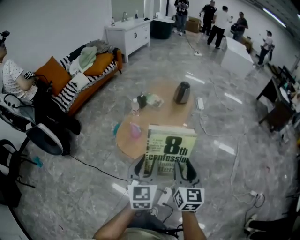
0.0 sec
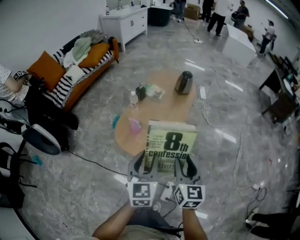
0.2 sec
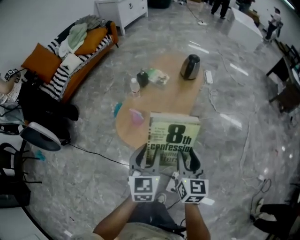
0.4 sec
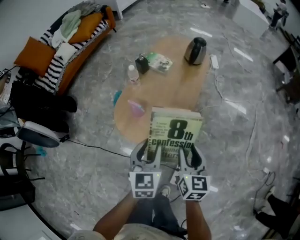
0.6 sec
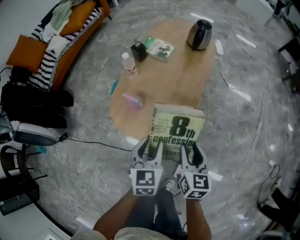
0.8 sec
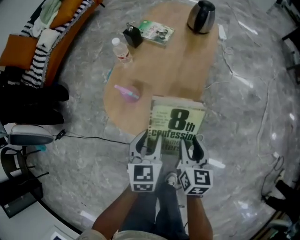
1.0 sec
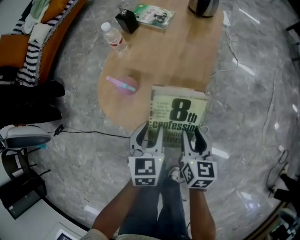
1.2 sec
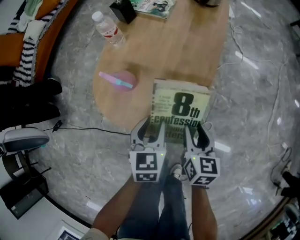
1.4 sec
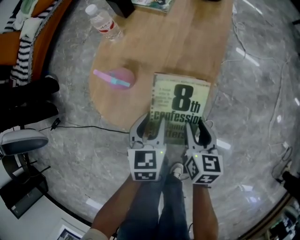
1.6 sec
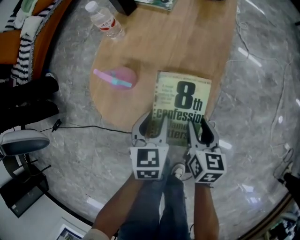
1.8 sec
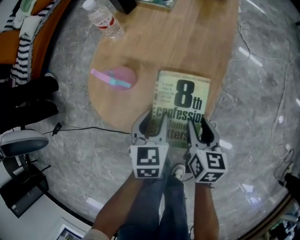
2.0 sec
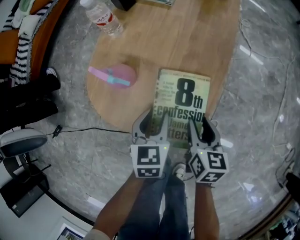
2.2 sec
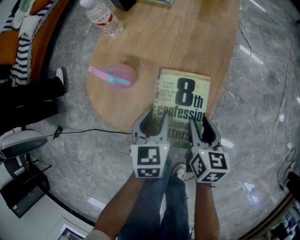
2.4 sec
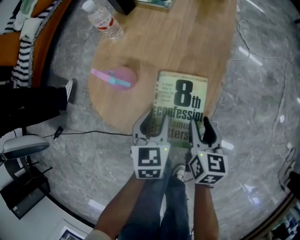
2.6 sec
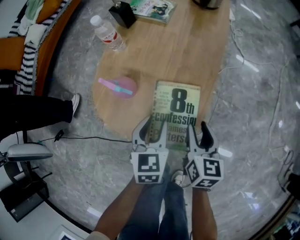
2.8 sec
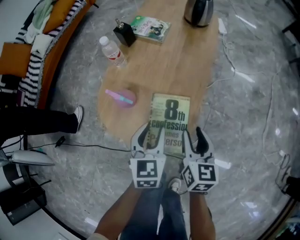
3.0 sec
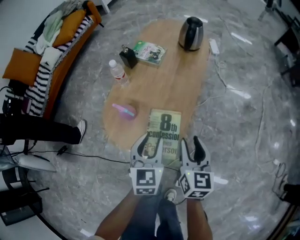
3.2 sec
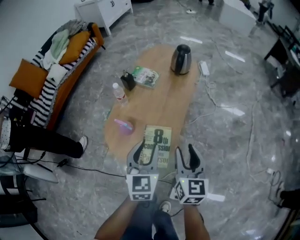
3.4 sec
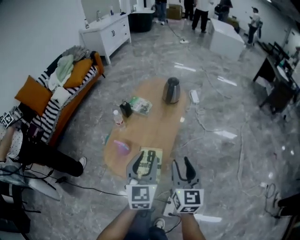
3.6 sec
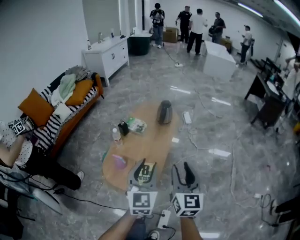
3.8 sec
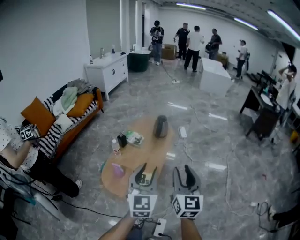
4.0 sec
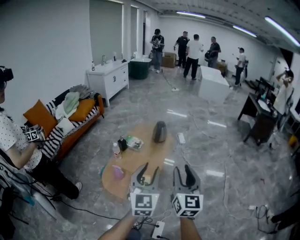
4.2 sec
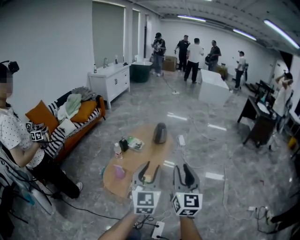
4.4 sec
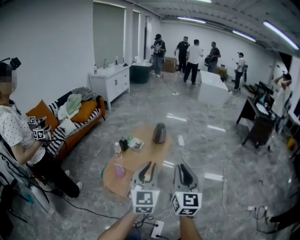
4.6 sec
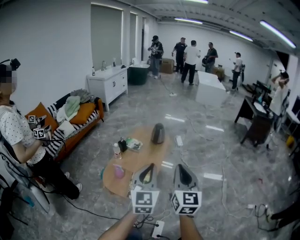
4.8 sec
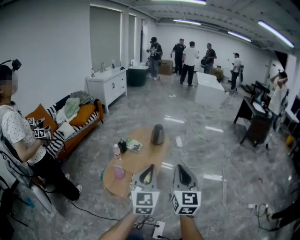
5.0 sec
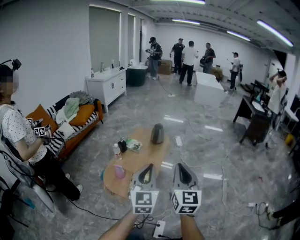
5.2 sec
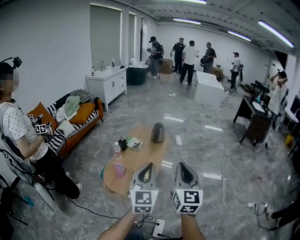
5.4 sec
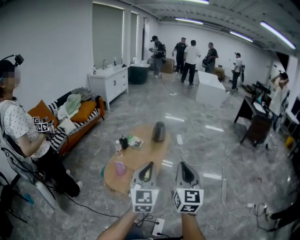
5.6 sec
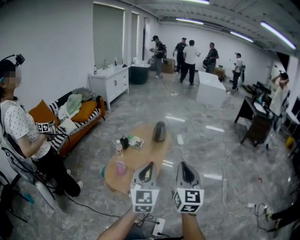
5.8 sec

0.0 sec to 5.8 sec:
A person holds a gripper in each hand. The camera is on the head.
0.0 sec to 1.4 sec: The grippers both shift downward and forward by approximately 50 cm. The right gripper turns by about 30 degrees, while the left gripper tilts its fingers roughly 30 degrees downward.
1.4 sec to 2.8 sec: The grippers make only small movements.
2.8 sec to 4.4 sec: Both grippers travel together upward, approximately 60 cm. The right gripper angles its fingers upward, by some 40 degrees, while the left gripper tilts its fingers some 40 degrees upward.
4.4 sec to 5.8 sec: The left gripper is displaced backward by some 5 cm, and closes up; the right gripper moves approximately 5 cm, and closes up.

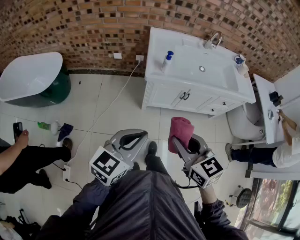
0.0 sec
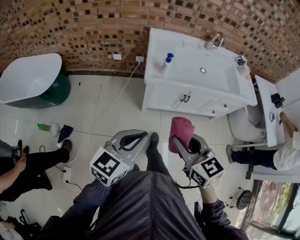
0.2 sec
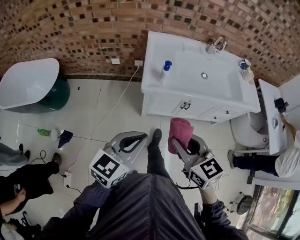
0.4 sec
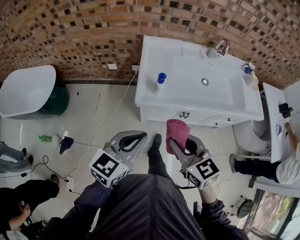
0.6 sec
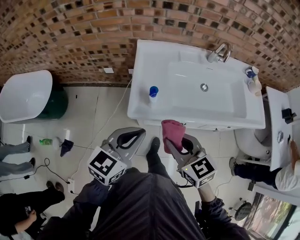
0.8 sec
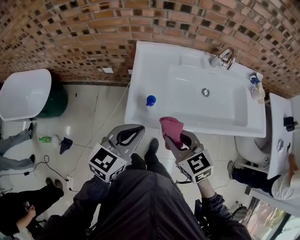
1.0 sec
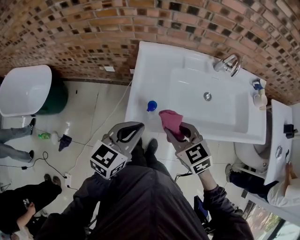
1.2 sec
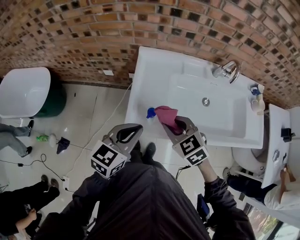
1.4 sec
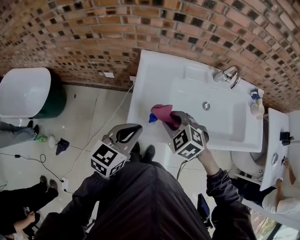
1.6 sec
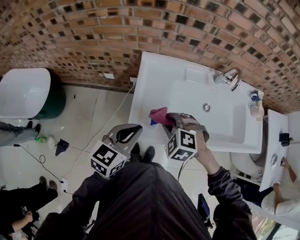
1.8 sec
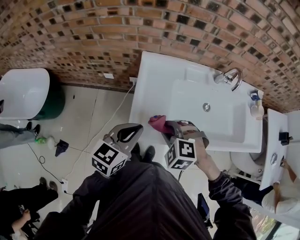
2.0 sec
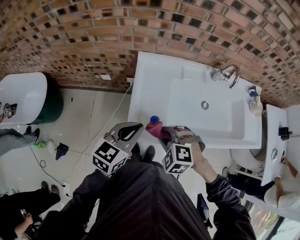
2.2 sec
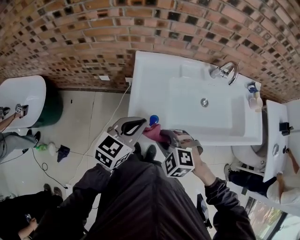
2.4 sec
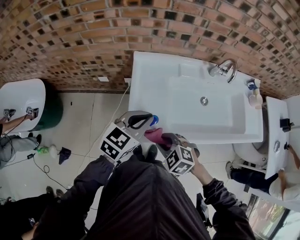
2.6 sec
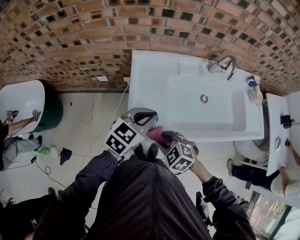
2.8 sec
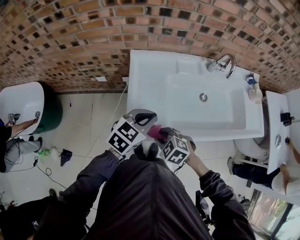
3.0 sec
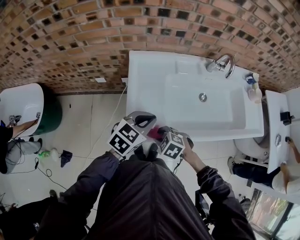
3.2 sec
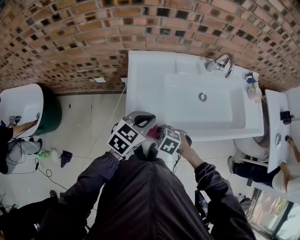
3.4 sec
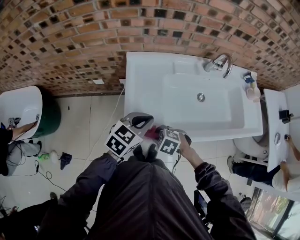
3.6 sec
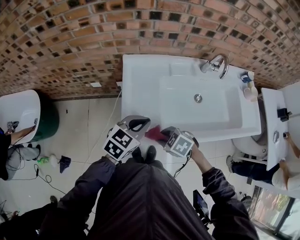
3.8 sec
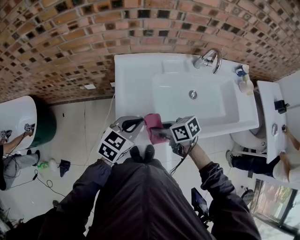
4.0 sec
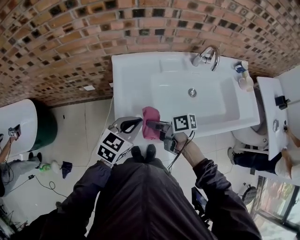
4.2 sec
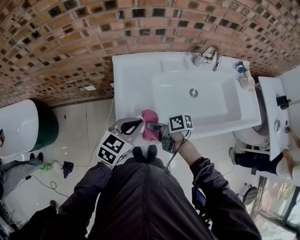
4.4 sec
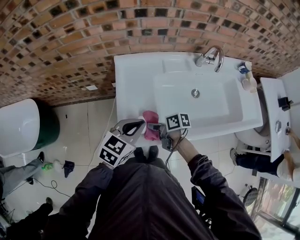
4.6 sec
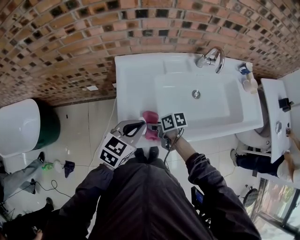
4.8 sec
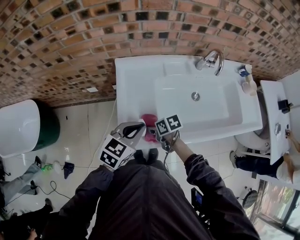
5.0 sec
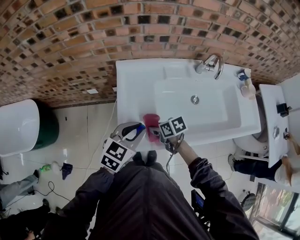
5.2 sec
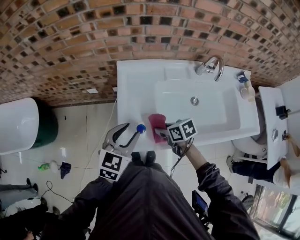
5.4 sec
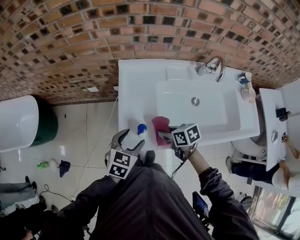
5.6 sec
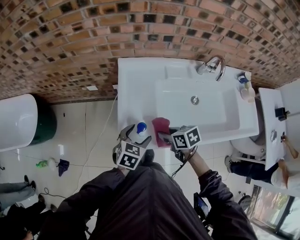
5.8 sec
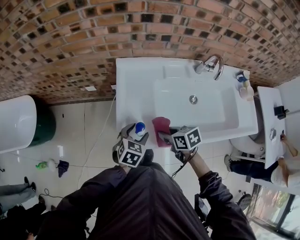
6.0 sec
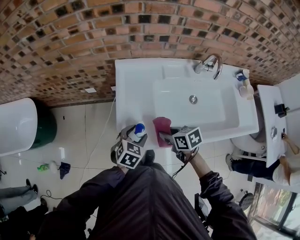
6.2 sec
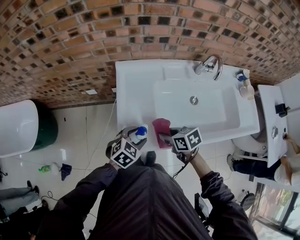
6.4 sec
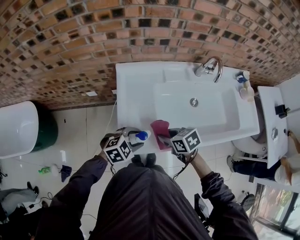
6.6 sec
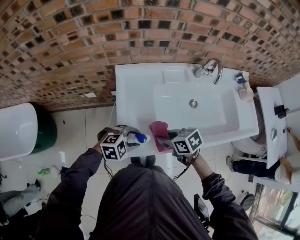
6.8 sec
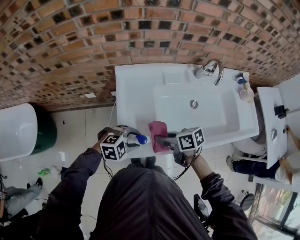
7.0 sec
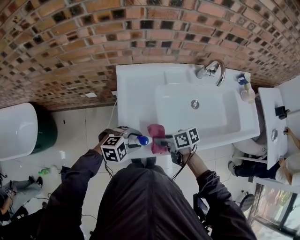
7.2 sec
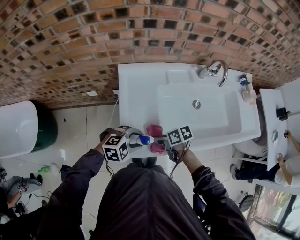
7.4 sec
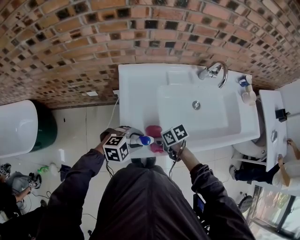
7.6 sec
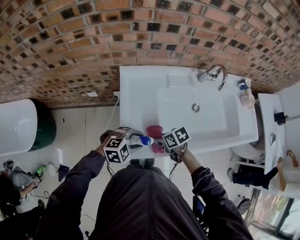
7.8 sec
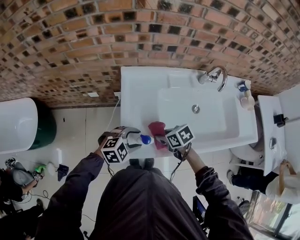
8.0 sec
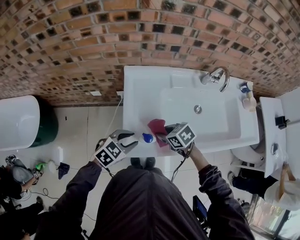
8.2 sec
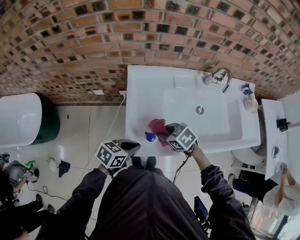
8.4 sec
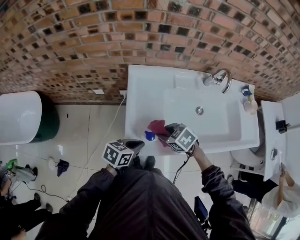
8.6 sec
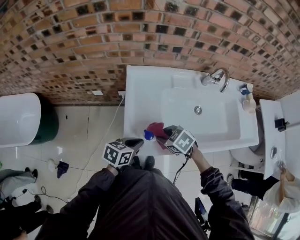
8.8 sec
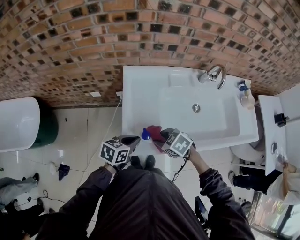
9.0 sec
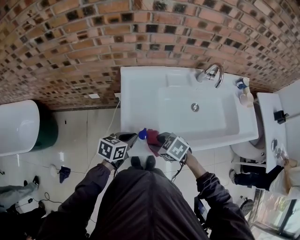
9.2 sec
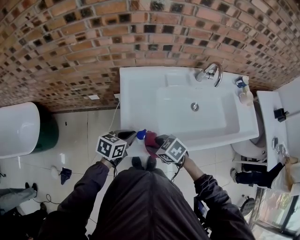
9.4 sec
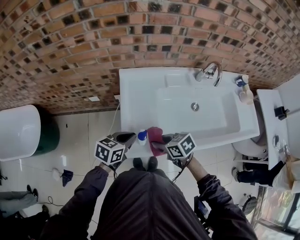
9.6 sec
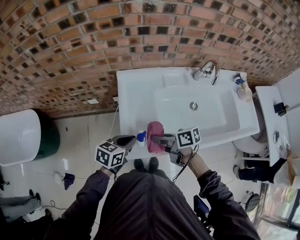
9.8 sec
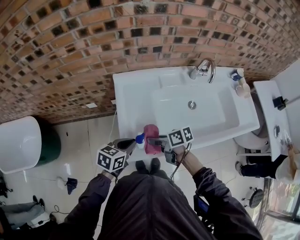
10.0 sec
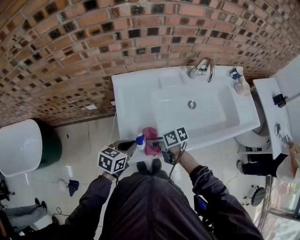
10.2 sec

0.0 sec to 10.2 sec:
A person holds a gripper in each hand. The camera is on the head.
0.0 sec to 1.4 sec: The pair of grippers is taken forward, some 40 cm. The right gripper rotates about 30 degrees.
1.4 sec to 3.0 sec: The right gripper is displaced downward by about 10 cm, and changes its angle by some 20 degrees; the left gripper travels forward by about 5 cm, and rotates approximately 20 degrees.
3.0 sec to 4.4 sec: The right gripper goes up and down, about 5 cm each way, reversing 2 times, and rolls clockwise, seen from behind, by some 80 degrees.
4.4 sec to 5.8 sec: The right gripper changes place by some 5 cm, and rotates roughly 40 degrees, while the left gripper travels downward by approximately 10 cm, rotates about 20 degrees, and opens its fingers.
5.8 sec to 7.2 sec: The right gripper swivels approximately 20 degrees, while the left gripper twists some 50 degrees clockwise, seen from behind, and closes.
7.2 sec to 8.8 sec: The right gripper moves some 5 cm downward and comes back, and rolls counterclockwise, seen from behind, by roughly 50 degrees, while the left gripper rolls counterclockwise, seen from behind, by about 70 degrees, and closes up.
8.8 sec to 10.2 sec: The right gripper twists approximately 50 degrees clockwise, seen from behind.

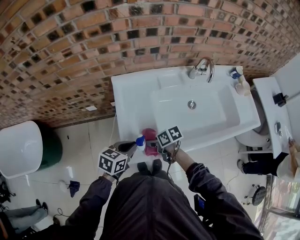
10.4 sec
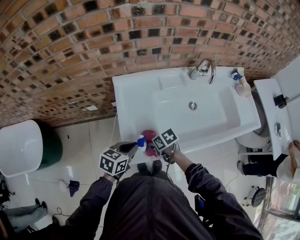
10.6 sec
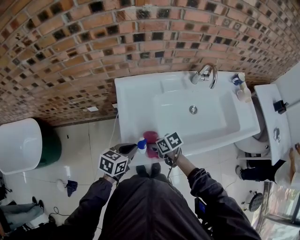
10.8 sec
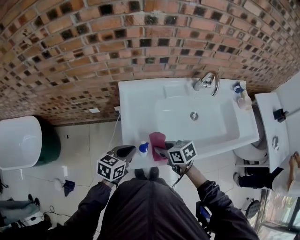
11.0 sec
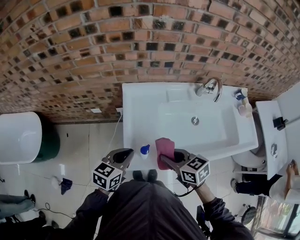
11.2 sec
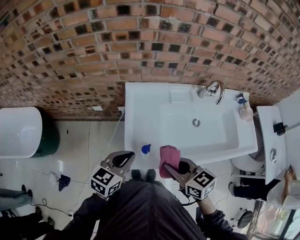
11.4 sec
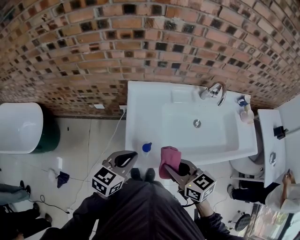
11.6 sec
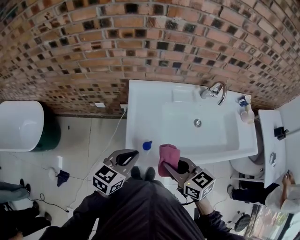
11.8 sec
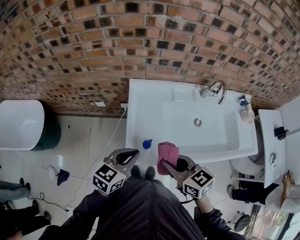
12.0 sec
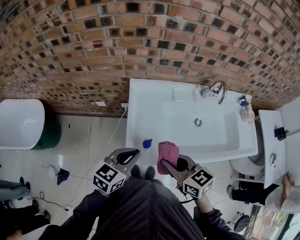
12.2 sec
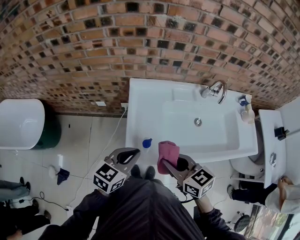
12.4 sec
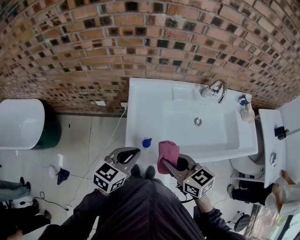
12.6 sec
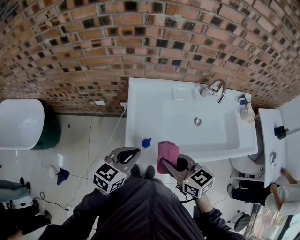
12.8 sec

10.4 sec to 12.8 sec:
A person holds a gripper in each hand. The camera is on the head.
10.4 sec to 11.6 sec: The left gripper is displaced upward by approximately 10 cm. The right gripper shifts approximately 20 cm upward, and changes its angle by some 40 degrees.
11.6 sec to 12.8 sec: The two grippers keep their place.

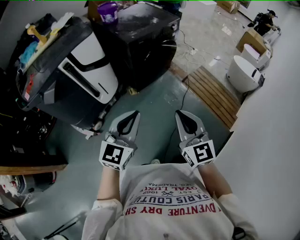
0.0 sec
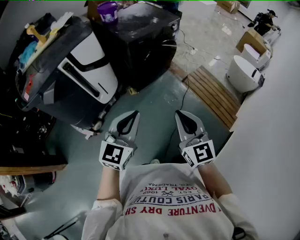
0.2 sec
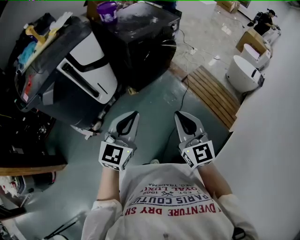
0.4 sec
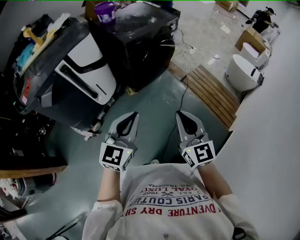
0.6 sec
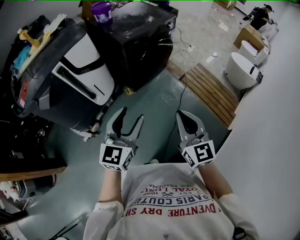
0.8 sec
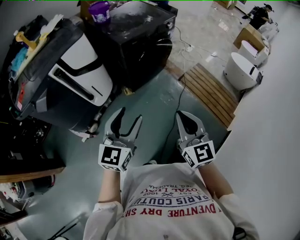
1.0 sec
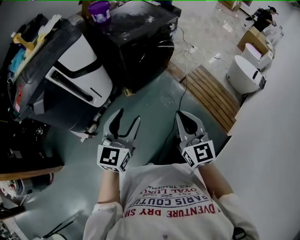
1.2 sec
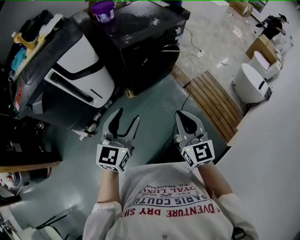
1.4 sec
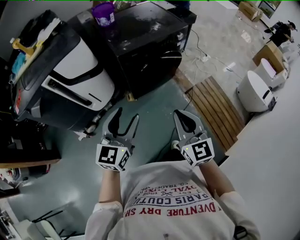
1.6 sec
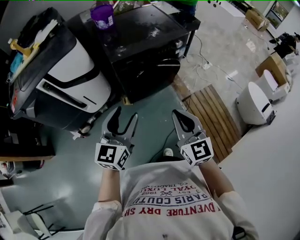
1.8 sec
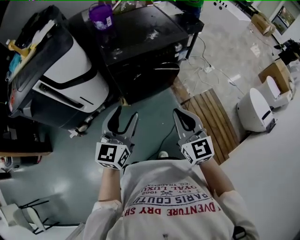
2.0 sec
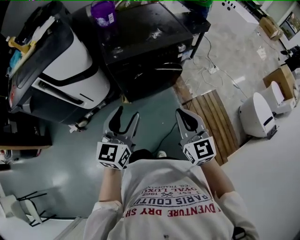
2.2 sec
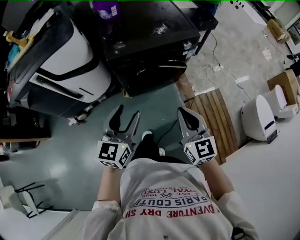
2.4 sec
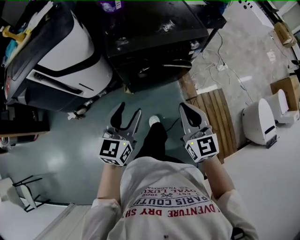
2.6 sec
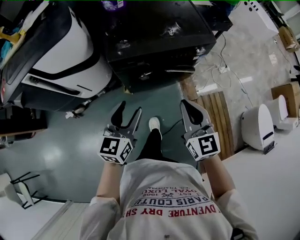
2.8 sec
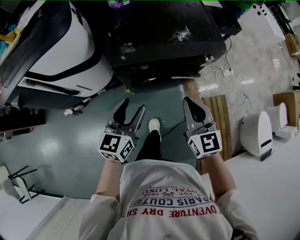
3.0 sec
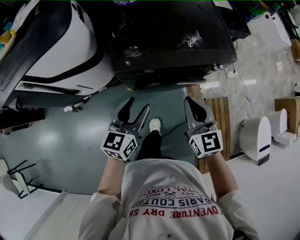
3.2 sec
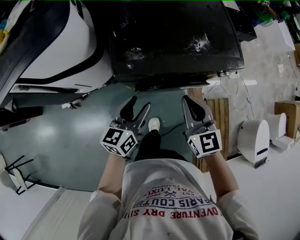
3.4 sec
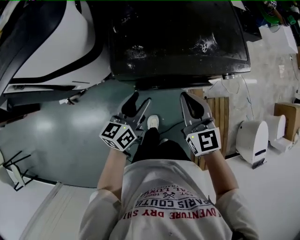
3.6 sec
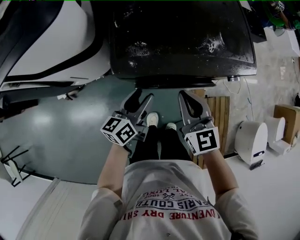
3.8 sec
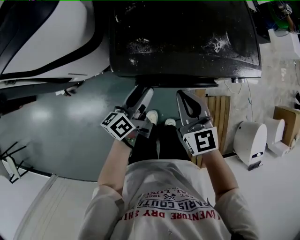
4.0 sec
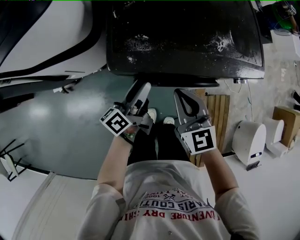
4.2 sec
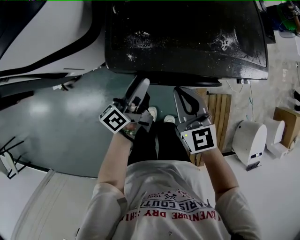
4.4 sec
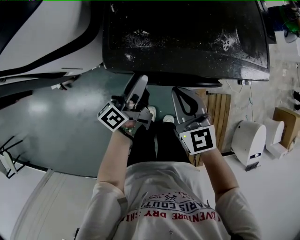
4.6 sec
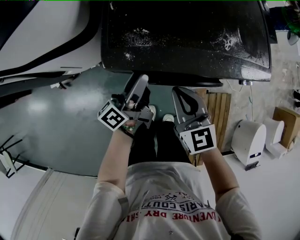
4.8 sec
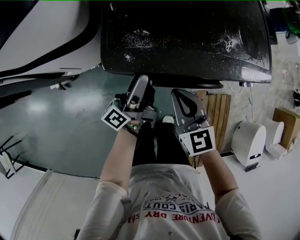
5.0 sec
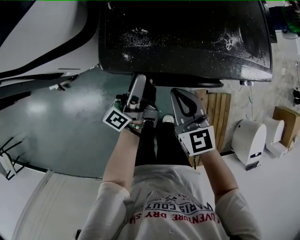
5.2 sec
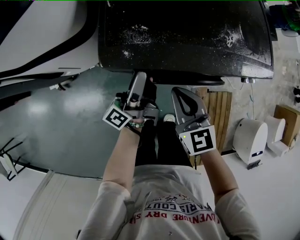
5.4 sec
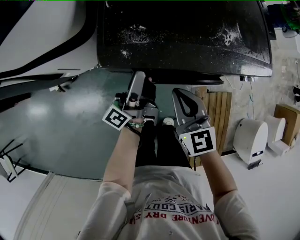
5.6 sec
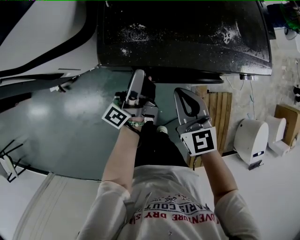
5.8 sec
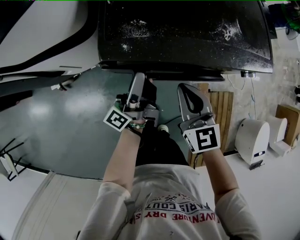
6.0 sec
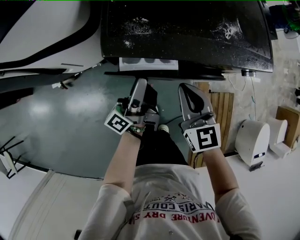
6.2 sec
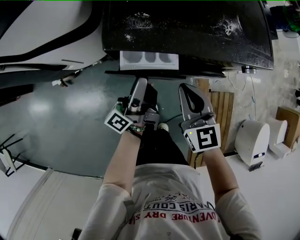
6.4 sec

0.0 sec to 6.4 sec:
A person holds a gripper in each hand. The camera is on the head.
0.0 sec to 1.6 sec: Both grippers travel together forward and to the right, roughly 25 cm. The left gripper opens up.
1.6 sec to 3.2 sec: The left gripper goes roughly 35 cm forward and downward, and swivels roughly 30 degrees. The right gripper is displaced forward by about 40 cm, and turns by about 20 degrees.
3.2 sec to 4.8 sec: The left gripper is displaced forward and downward by approximately 20 cm, and twists roughly 50 degrees counterclockwise, seen from behind. The right gripper moves downward, forward and to the left, roughly 15 cm.
4.8 sec to 6.4 sec: The left gripper goes some 5 cm backward.
